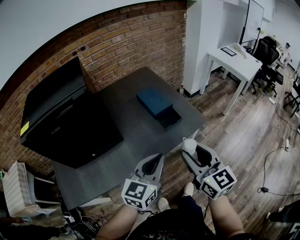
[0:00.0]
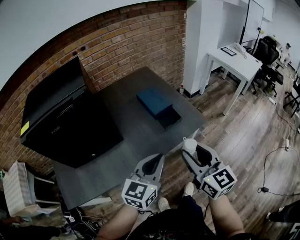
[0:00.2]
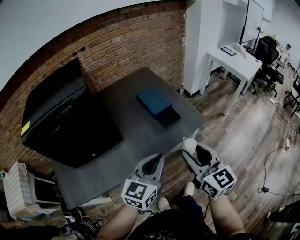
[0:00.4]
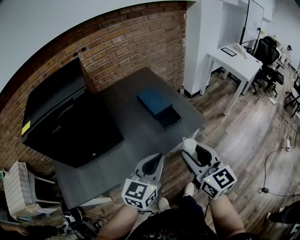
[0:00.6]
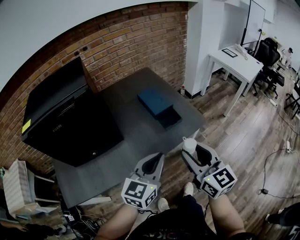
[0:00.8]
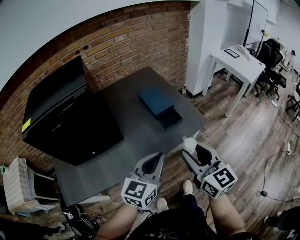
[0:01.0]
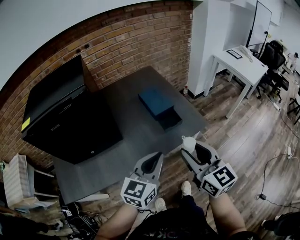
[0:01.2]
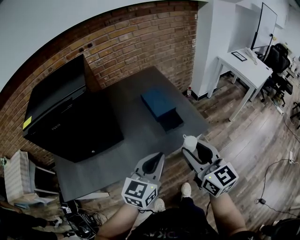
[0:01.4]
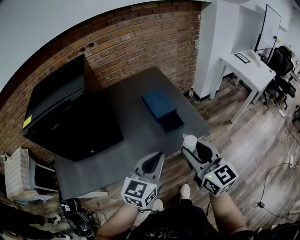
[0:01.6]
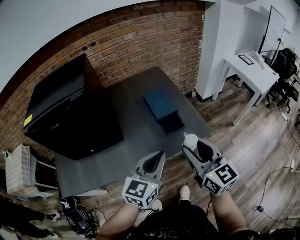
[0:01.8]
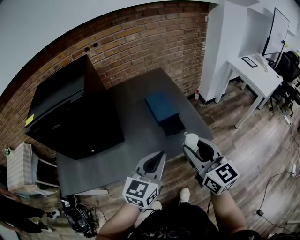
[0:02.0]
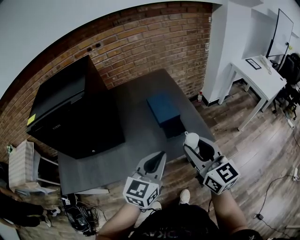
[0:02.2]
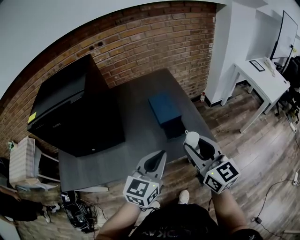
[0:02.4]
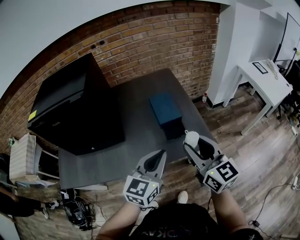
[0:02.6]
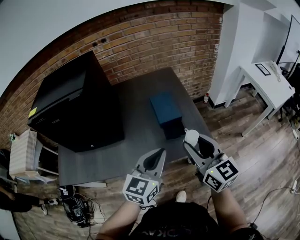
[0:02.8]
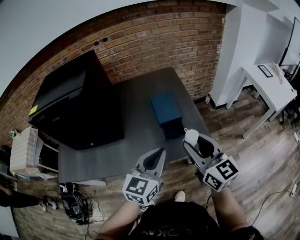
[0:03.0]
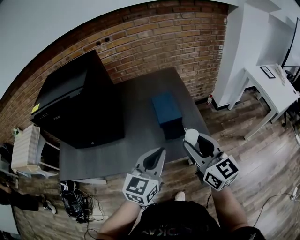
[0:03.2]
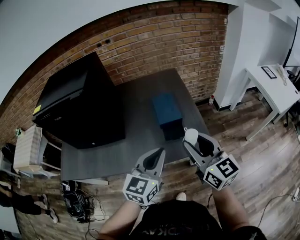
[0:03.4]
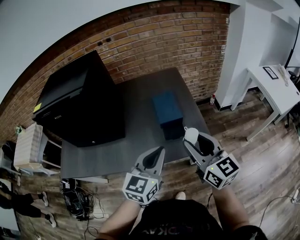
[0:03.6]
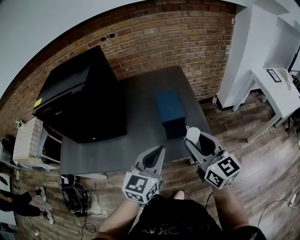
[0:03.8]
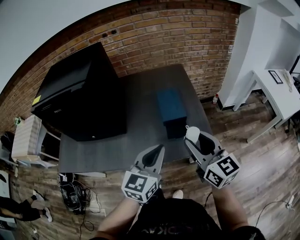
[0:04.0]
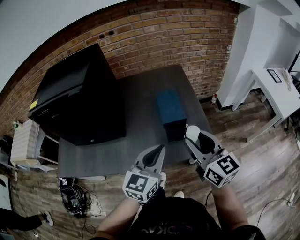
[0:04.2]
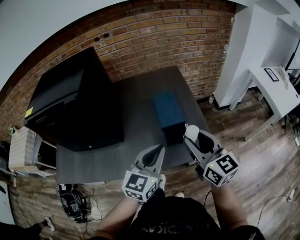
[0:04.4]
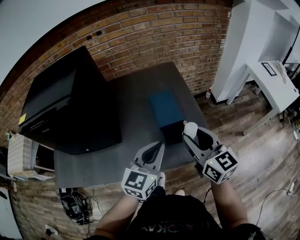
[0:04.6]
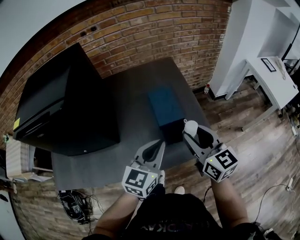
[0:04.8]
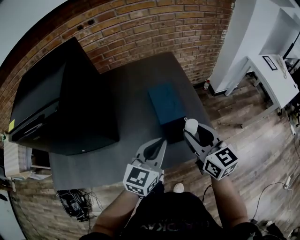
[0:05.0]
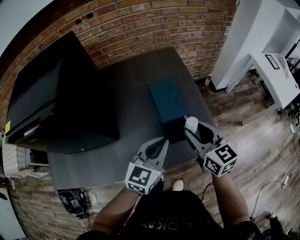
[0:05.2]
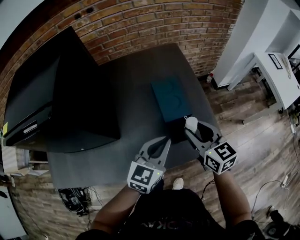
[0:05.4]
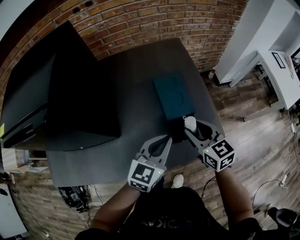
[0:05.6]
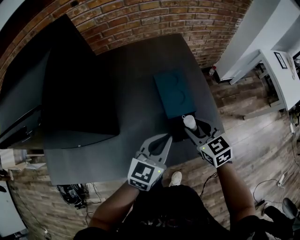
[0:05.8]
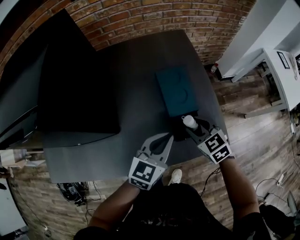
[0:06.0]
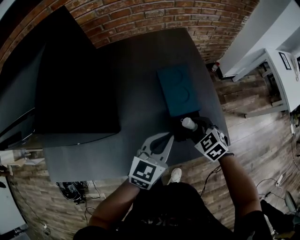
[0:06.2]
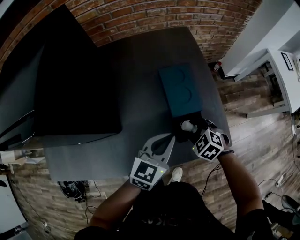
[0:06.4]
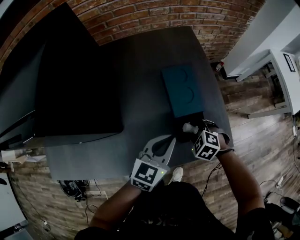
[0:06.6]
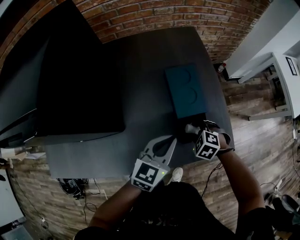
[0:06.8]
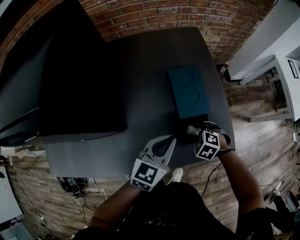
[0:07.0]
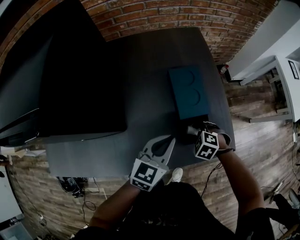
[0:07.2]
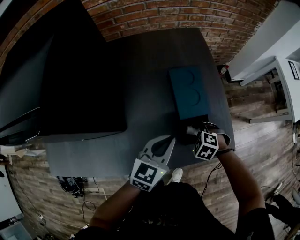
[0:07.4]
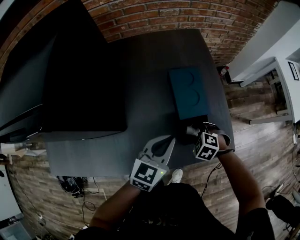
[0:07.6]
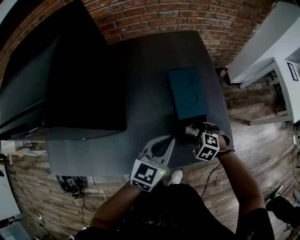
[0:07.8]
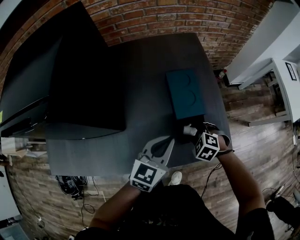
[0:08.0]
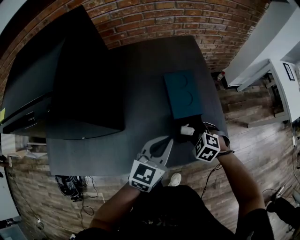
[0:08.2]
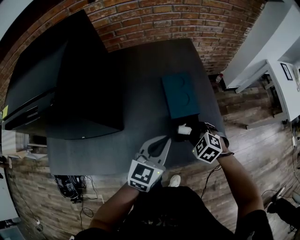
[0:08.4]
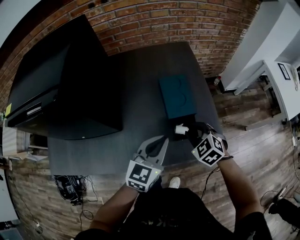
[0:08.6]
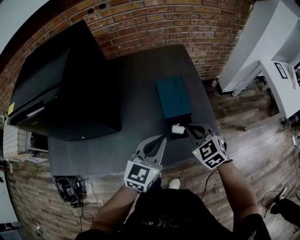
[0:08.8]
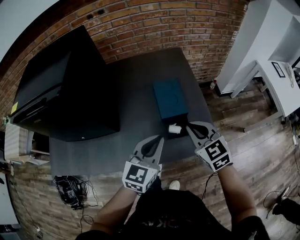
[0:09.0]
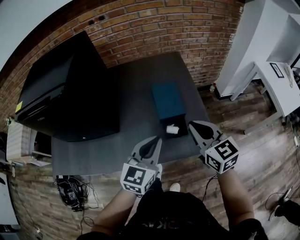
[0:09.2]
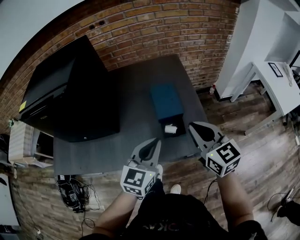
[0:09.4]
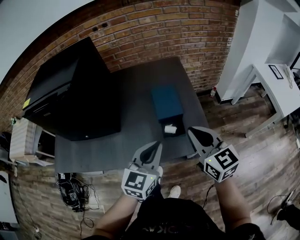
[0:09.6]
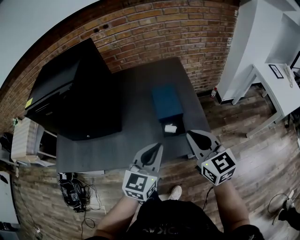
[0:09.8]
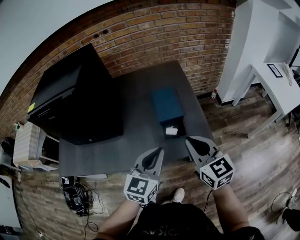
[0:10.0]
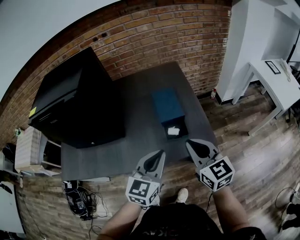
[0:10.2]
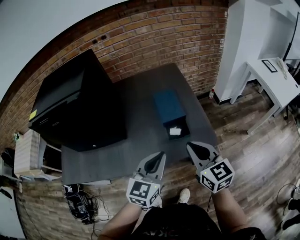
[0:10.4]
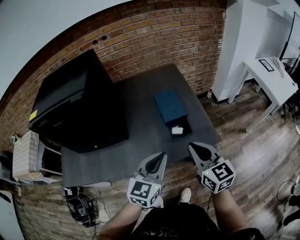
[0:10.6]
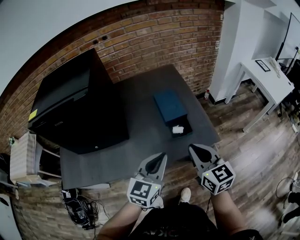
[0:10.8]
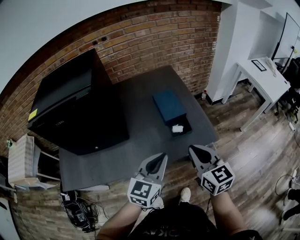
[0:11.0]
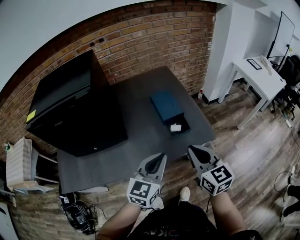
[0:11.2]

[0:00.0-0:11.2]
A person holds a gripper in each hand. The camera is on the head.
0:00.0 to 0:01.6: The left gripper ends up some 5 cm from where it was. Meanwhile the right gripper travels forward by roughly 5 cm.
0:01.6 to 0:03.2: The right gripper shifts about 10 cm forward and to the right. Meanwhile the left gripper shifts about 10 cm to the right and forward.
0:03.2 to 0:04.8: Both grippers move forward, some 10 cm.
0:04.8 to 0:06.4: The left gripper heads downward and forward, covering some 15 cm. Meanwhile the right gripper moves downward, approximately 25 cm, and angles its fingers downward, by about 50 degrees.
0:06.4 to 0:08.0: There are only small adjustments of the grippers.
0:08.0 to 0:09.6: The left gripper travels backward, upward and to the right by some 15 cm; the right gripper shifts approximately 30 cm upward, angles its fingers upward, by about 60 degrees, and closes.
0:09.6 to 0:11.2: Both grippers move backward and to the left, some 15 cm.

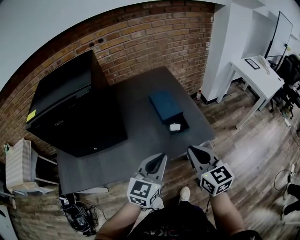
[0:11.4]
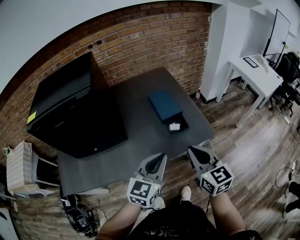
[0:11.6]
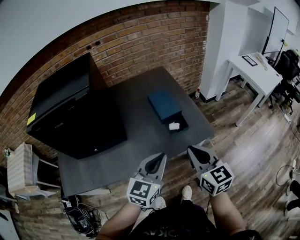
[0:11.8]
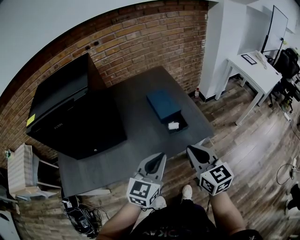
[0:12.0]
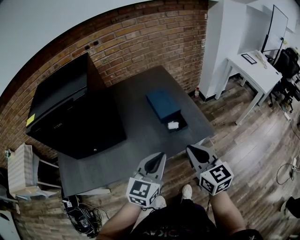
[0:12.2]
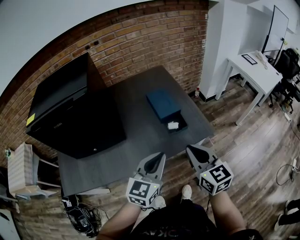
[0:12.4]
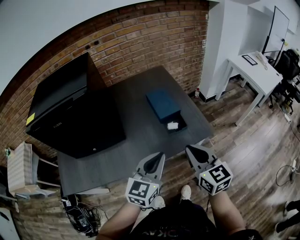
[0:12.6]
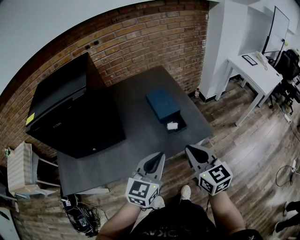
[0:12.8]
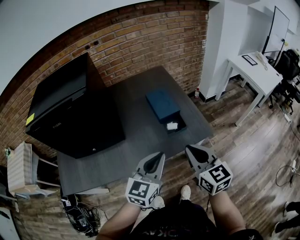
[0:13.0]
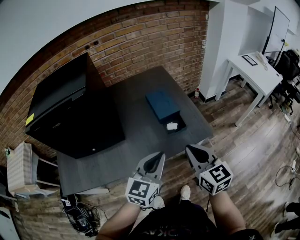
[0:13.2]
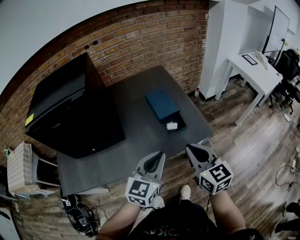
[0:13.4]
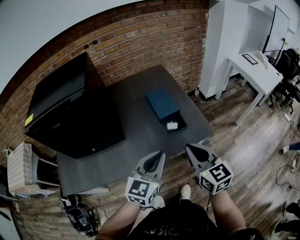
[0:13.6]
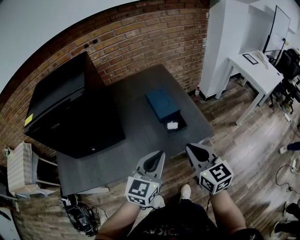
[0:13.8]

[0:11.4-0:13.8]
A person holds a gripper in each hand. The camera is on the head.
0:11.4 to 0:12.6: Both grippers stay put.
0:12.6 to 0:13.8: Both grippers stay put.

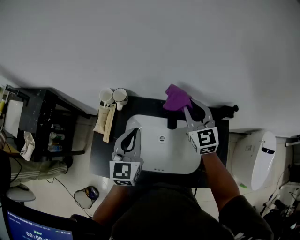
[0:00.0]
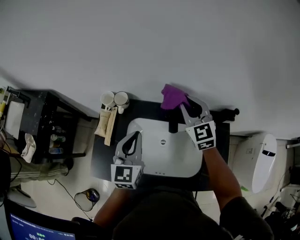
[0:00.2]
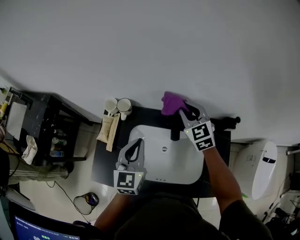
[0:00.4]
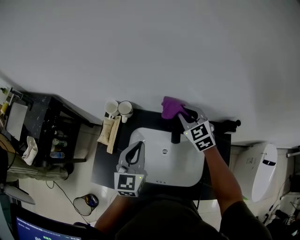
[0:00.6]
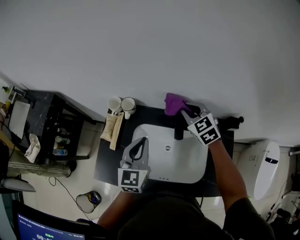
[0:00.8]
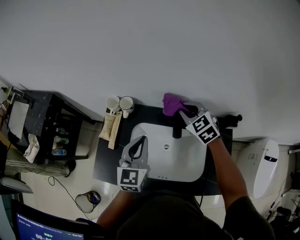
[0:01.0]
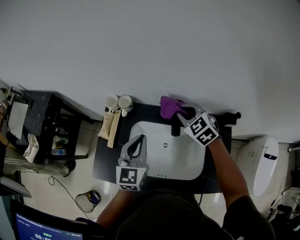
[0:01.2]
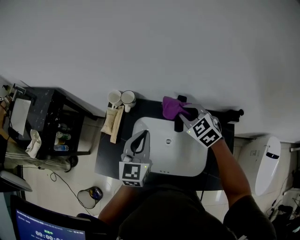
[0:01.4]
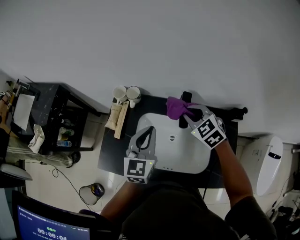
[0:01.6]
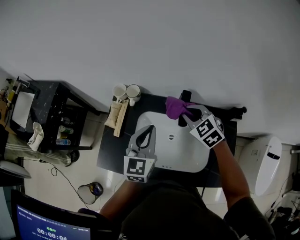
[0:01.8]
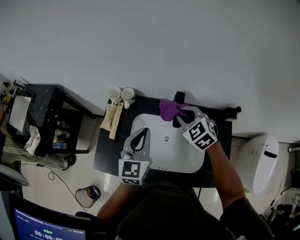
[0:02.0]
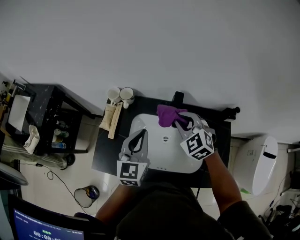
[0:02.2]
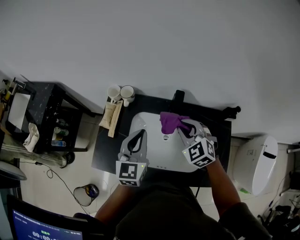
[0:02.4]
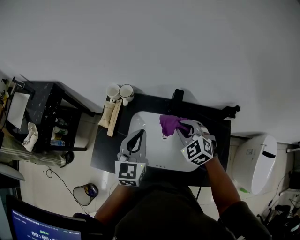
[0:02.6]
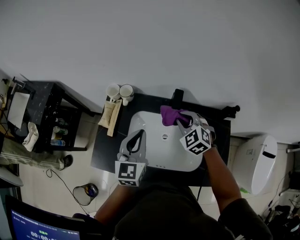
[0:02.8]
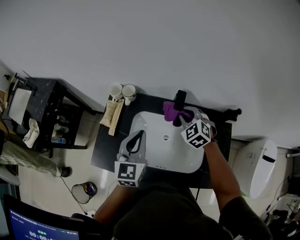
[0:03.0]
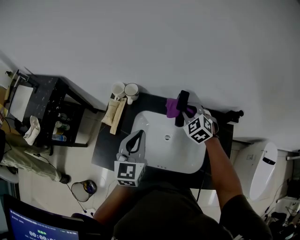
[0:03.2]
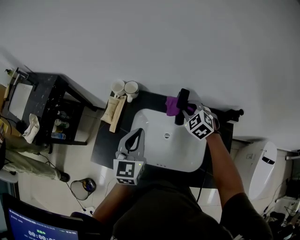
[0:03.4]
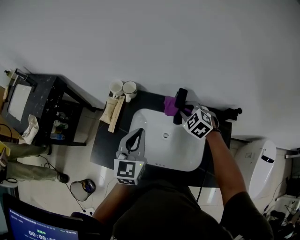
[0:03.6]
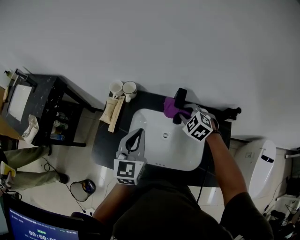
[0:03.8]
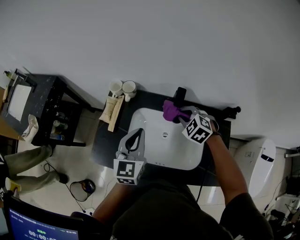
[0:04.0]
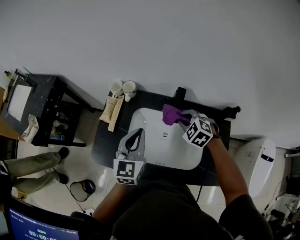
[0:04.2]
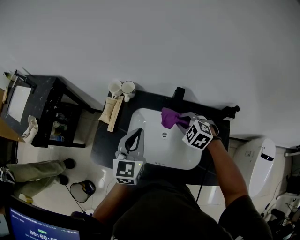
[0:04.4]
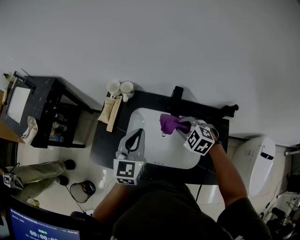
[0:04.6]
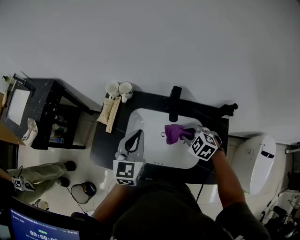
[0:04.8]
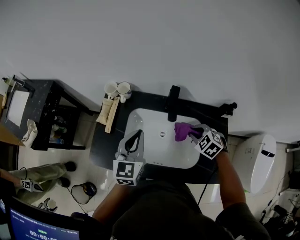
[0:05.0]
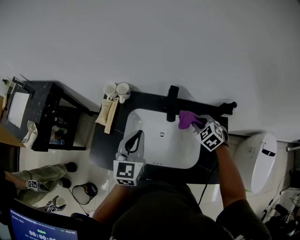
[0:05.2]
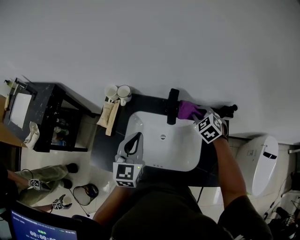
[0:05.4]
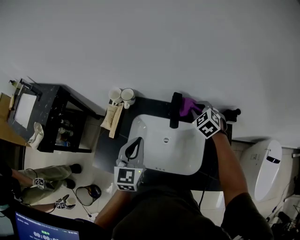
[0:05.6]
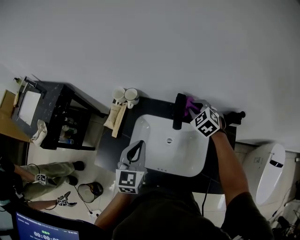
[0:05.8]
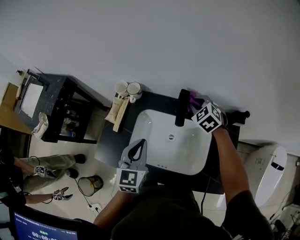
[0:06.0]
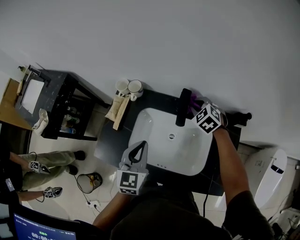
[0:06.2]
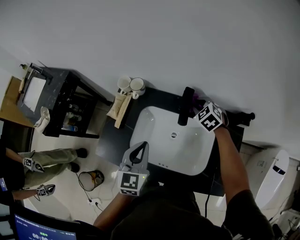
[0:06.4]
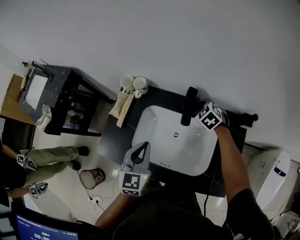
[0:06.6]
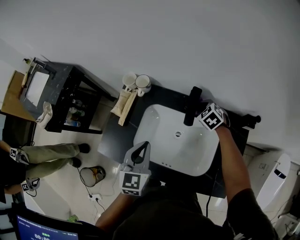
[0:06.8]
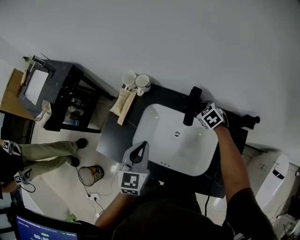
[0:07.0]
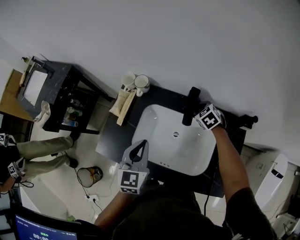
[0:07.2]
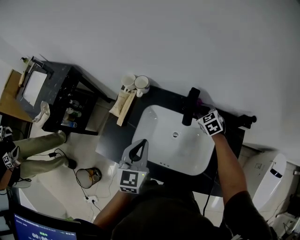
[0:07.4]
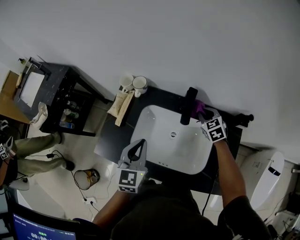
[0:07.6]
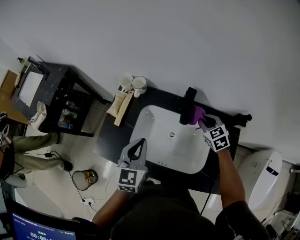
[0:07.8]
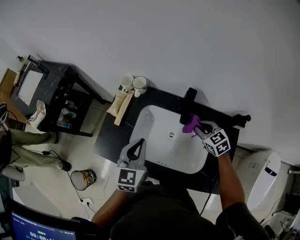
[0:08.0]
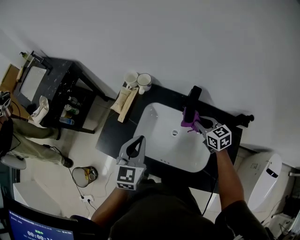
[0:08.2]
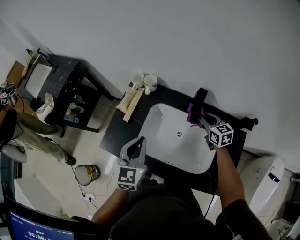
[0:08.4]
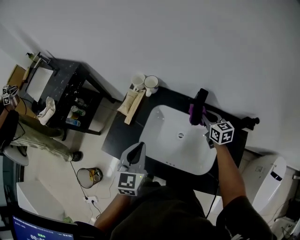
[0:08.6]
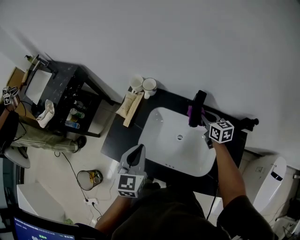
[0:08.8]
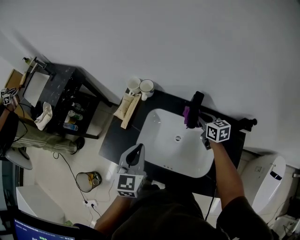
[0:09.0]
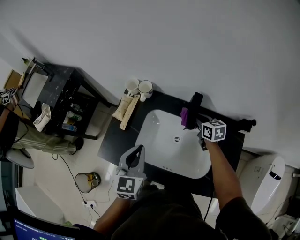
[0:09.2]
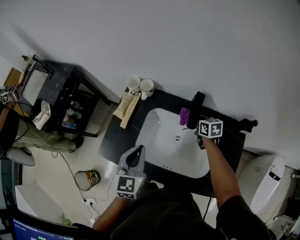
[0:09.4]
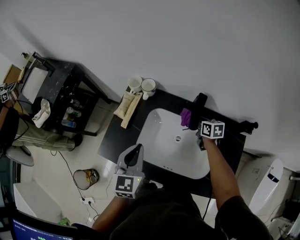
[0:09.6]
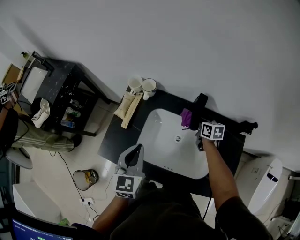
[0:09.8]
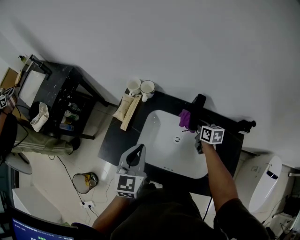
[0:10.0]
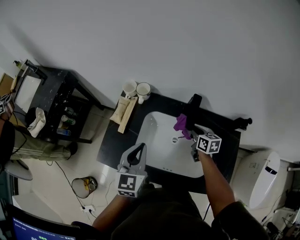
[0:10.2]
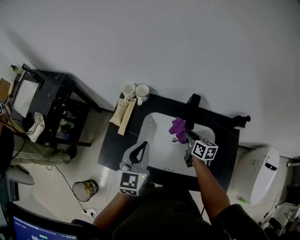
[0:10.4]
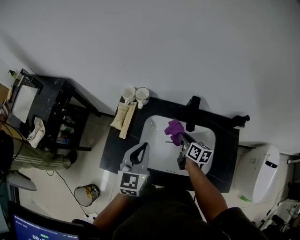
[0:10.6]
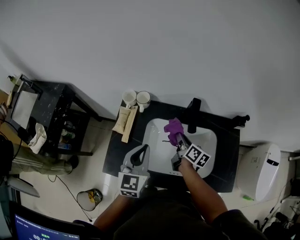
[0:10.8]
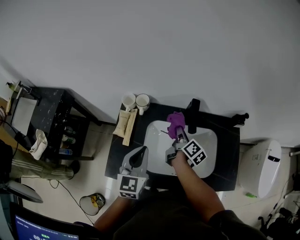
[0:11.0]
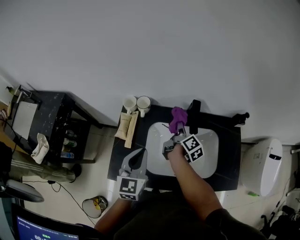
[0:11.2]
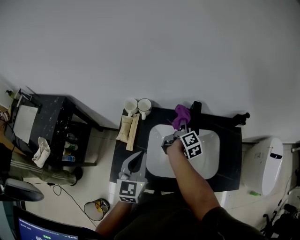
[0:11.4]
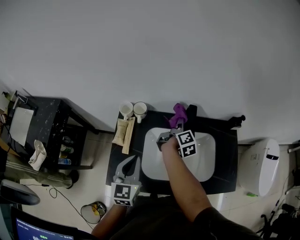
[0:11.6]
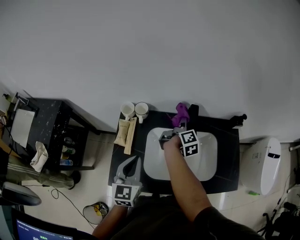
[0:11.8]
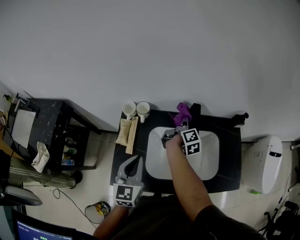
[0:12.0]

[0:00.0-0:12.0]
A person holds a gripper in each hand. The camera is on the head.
0:00.0 to 0:01.6: The right gripper travels to the left and downward by approximately 10 cm, and turns by roughly 40 degrees.
0:01.6 to 0:03.0: The right gripper shifts by about 5 cm.
0:03.0 to 0:04.4: The right gripper shifts roughly 5 cm backward.
0:04.4 to 0:06.0: The right gripper heads forward and to the right, covering some 10 cm.
0:06.0 to 0:07.6: The right gripper heads downward, covering about 5 cm.
0:07.6 to 0:09.0: The right gripper goes backward and returns, about 5 cm each way, and changes its angle by approximately 30 degrees.
0:09.0 to 0:10.4: The right gripper travels backward and to the left by some 10 cm, and rotates some 20 degrees.
0:10.4 to 0:12.0: The right gripper moves approximately 10 cm, and swivels approximately 70 degrees; the left gripper moves some 5 cm.
